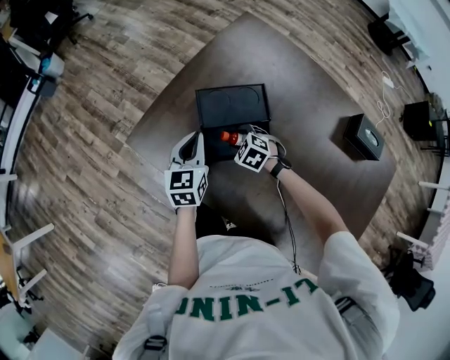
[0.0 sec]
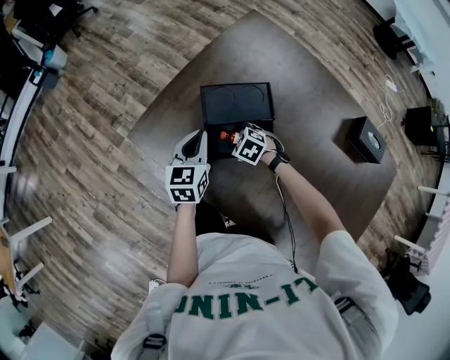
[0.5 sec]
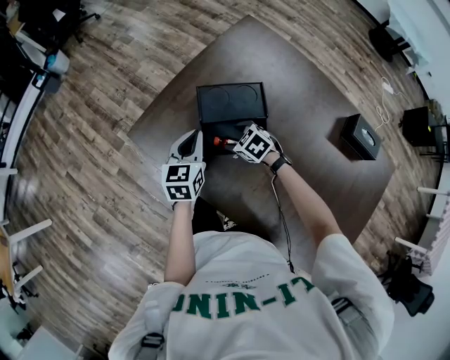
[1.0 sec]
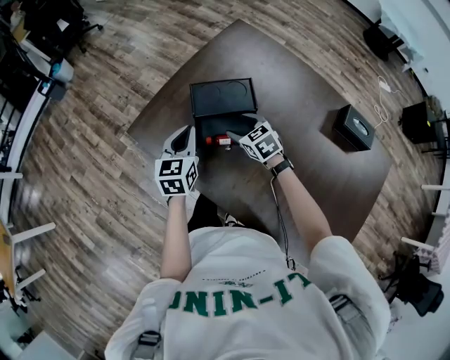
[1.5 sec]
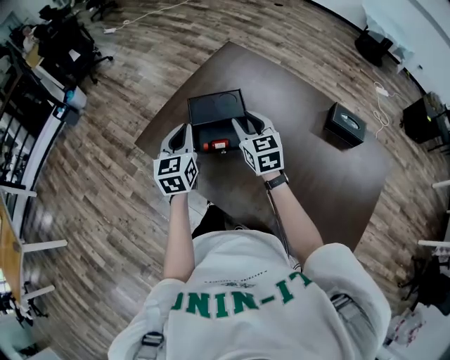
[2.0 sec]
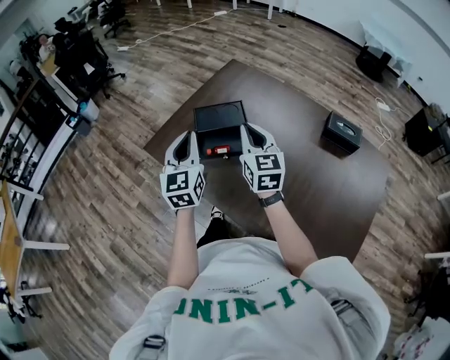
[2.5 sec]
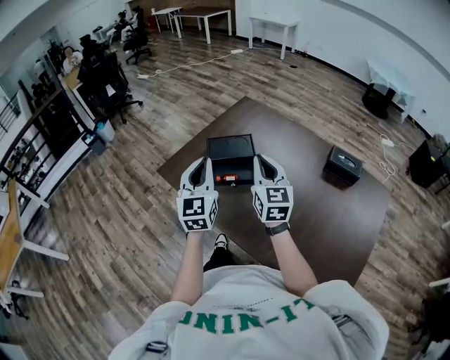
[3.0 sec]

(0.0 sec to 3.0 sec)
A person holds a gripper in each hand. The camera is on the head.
0.0 sec - 1.5 sec: The left gripper moves backward, roughly 5 cm. Meanwhile the right gripper goes about 10 cm upward, and changes its angle by about 30 degrees.
1.5 sec - 3.0 sec: The two grippers go roughly 30 cm upward and backward. The left gripper rotates some 30 degrees, while the right gripper angles its fingers upward, by about 40 degrees, and closes.

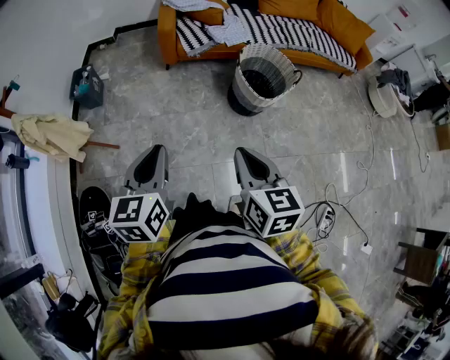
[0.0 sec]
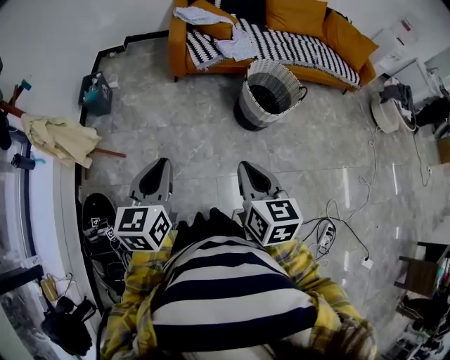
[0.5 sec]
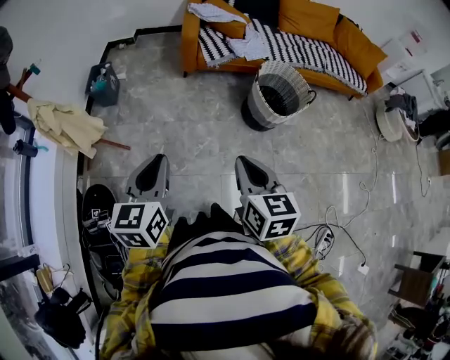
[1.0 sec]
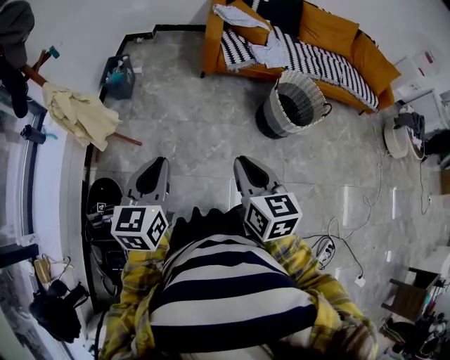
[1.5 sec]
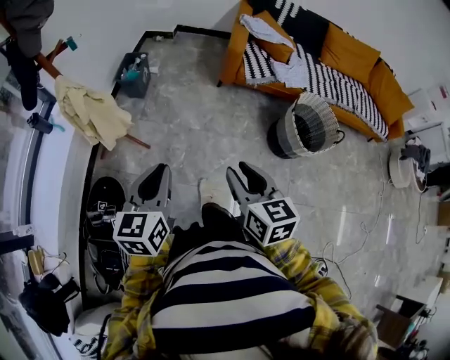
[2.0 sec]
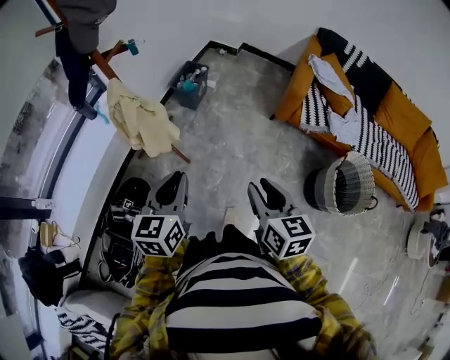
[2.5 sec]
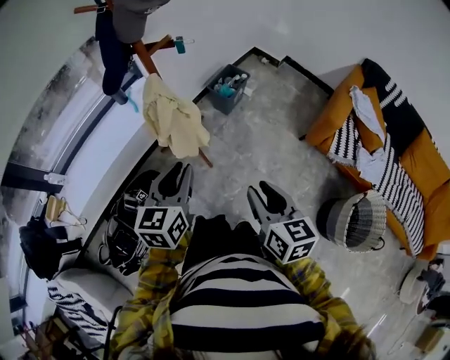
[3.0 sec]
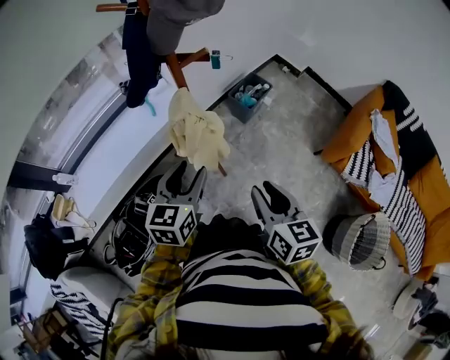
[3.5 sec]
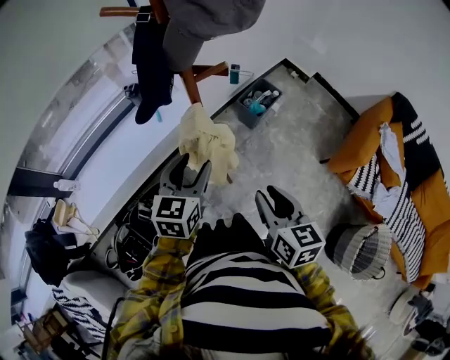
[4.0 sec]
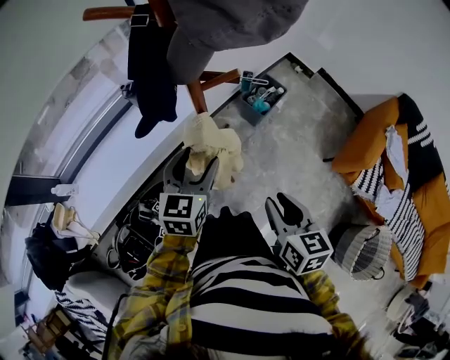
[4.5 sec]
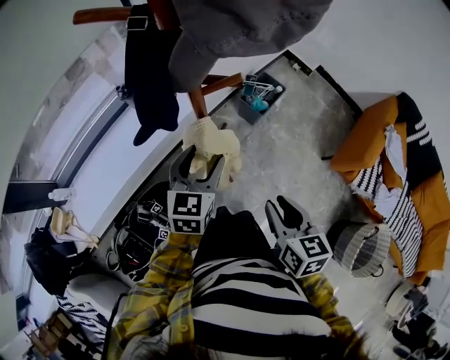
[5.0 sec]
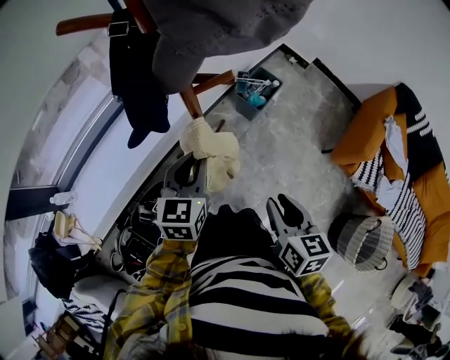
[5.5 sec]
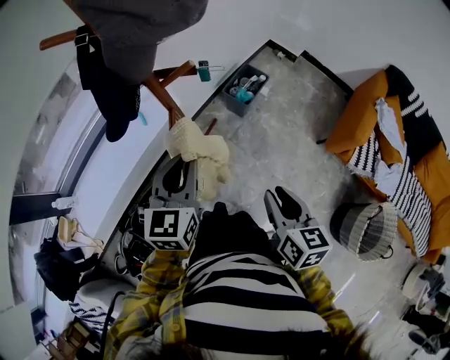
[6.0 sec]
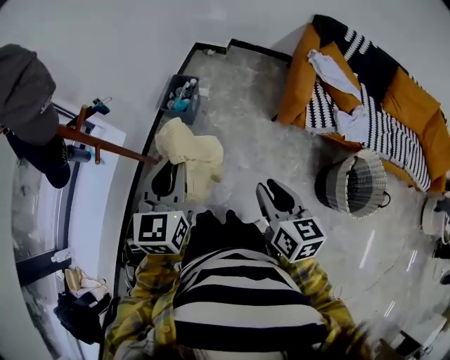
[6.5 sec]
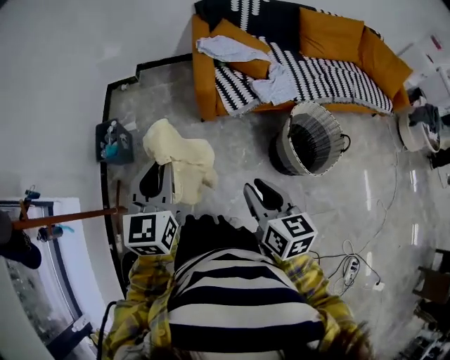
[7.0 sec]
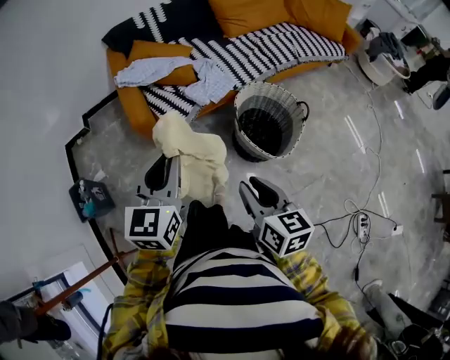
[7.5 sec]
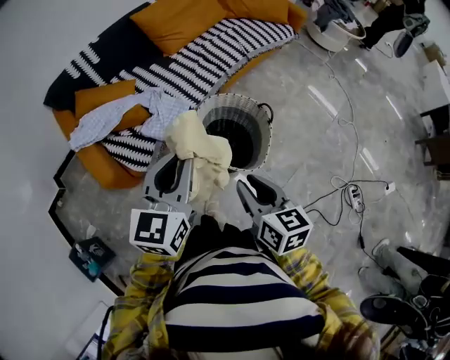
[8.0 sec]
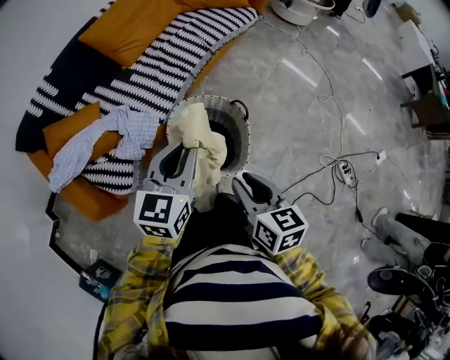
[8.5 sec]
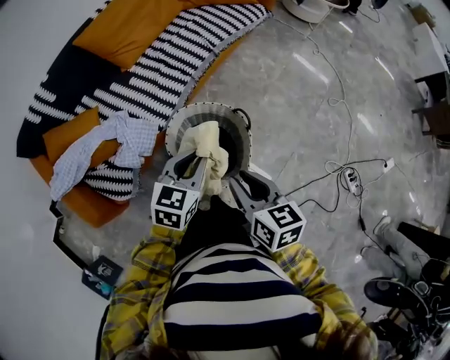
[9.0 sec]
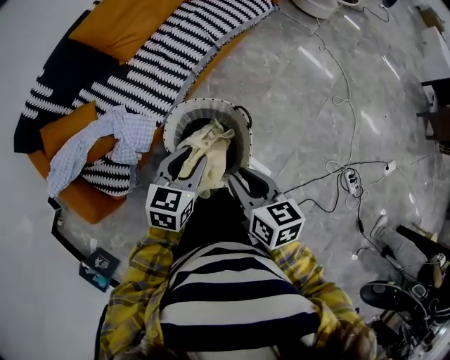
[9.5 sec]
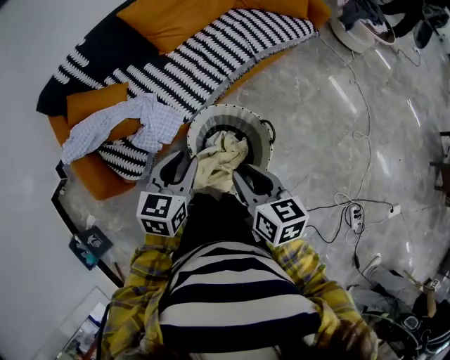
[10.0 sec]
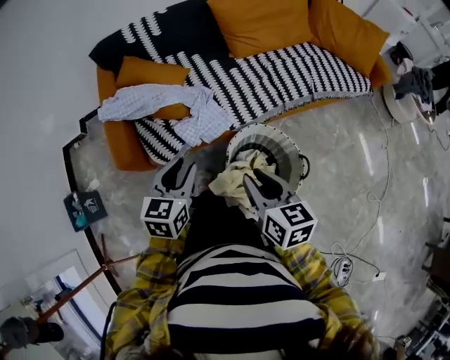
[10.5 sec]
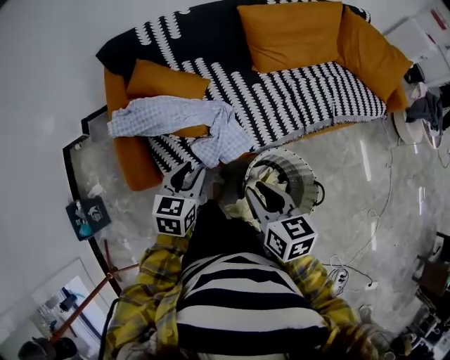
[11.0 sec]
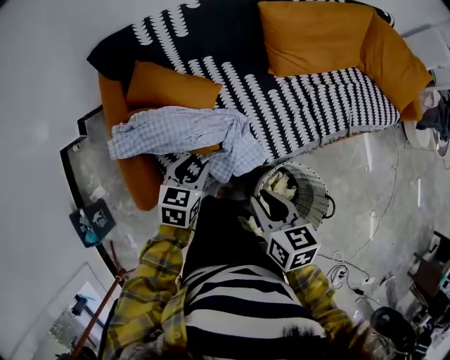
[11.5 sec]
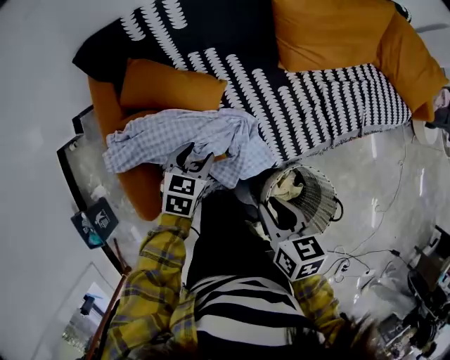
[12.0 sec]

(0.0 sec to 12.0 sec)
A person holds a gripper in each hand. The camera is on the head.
0.0 sec - 2.0 sec: The left gripper travels to the left by some 15 cm. Meanwhile the right gripper is displaced to the left and forward by some 20 cm, swivels approximately 20 degrees, and opens.
2.0 sec - 4.0 sec: The right gripper ends up approximately 40 cm from where it was, and swivels roughly 30 degrees; the left gripper moves some 40 cm, changes its angle by about 30 degrees, and opens.
4.0 sec - 6.0 sec: The left gripper ends up some 5 cm from where it was, and closes up. The right gripper heads to the right, covering about 5 cm.
6.0 sec - 8.0 sec: The pair of grippers is taken about 70 cm. The right gripper swivels roughly 80 degrees; the left gripper swivels some 90 degrees.
8.0 sec - 10.0 sec: The left gripper heads forward, downward and to the right, covering roughly 20 cm; the right gripper heads forward, covering some 15 cm.
10.0 sec - 12.0 sec: The right gripper travels forward and to the left by roughly 35 cm, and swivels approximately 30 degrees, while the left gripper heads forward, to the left and downward, covering some 40 cm, and changes its angle by roughly 20 degrees.

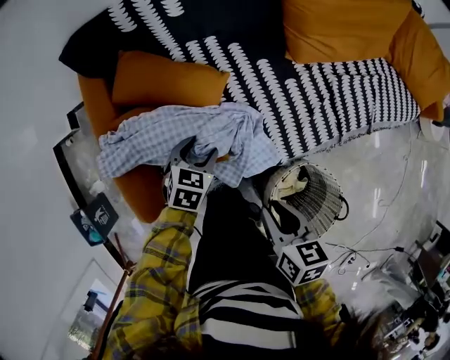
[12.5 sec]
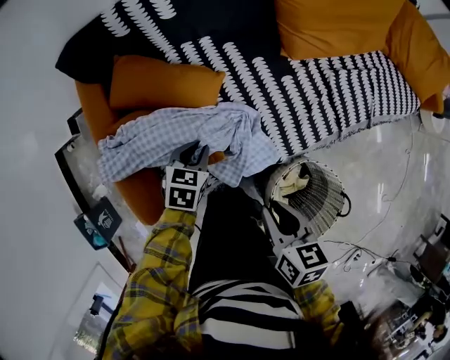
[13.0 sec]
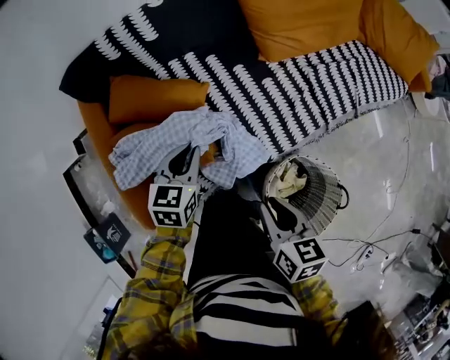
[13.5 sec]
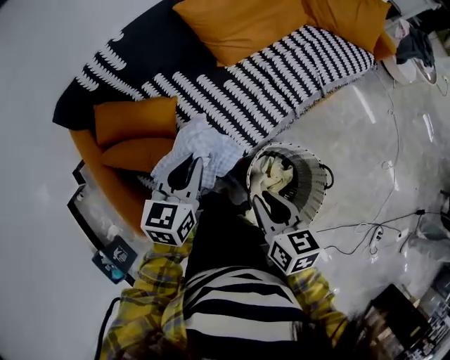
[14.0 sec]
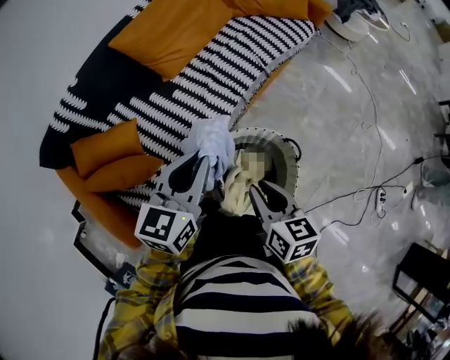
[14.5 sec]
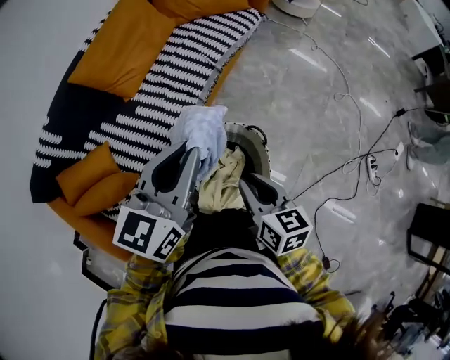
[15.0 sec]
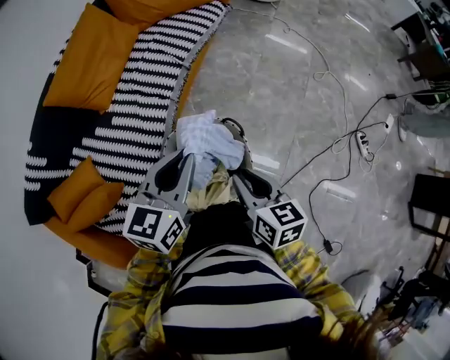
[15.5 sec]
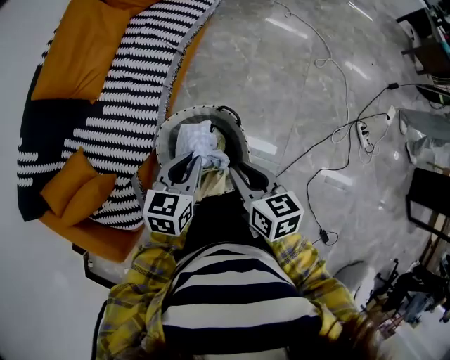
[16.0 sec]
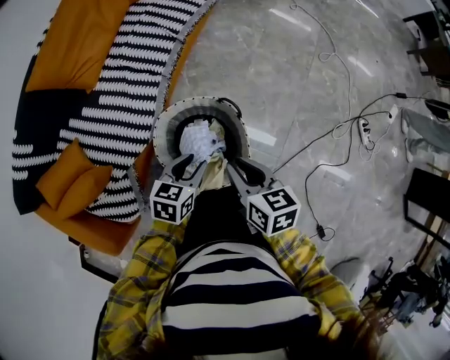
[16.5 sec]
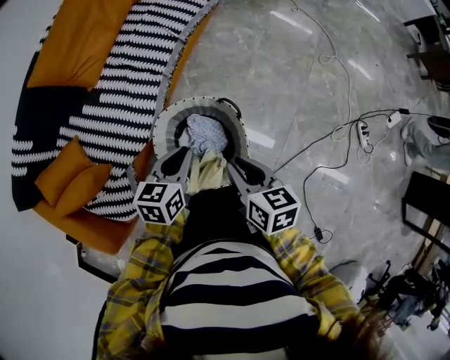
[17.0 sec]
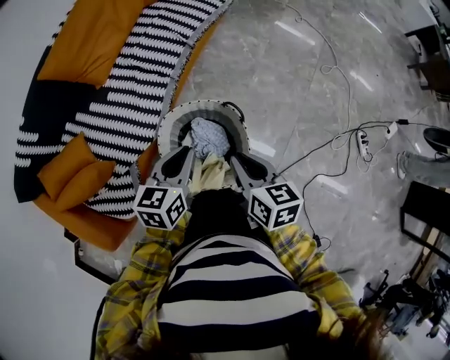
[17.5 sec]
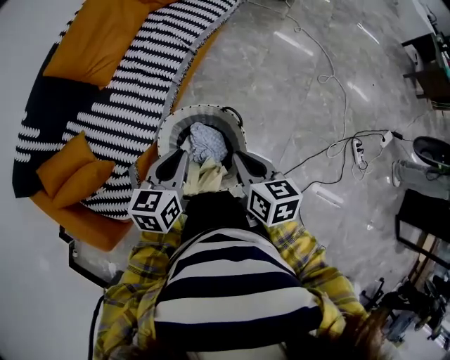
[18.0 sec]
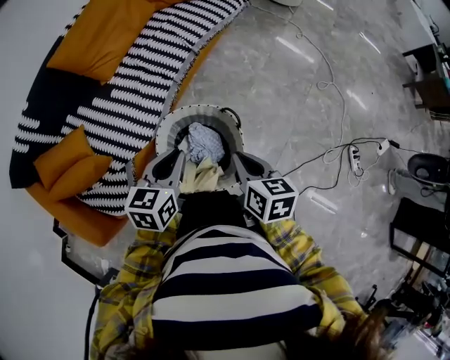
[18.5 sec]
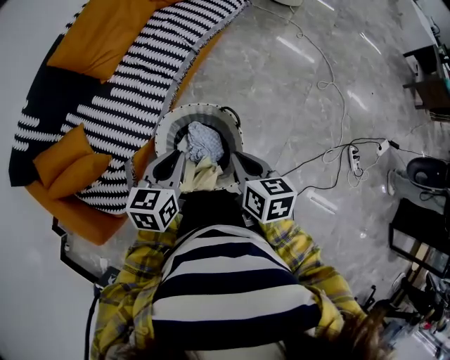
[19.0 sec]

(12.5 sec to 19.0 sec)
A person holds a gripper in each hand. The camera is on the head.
12.5 sec - 14.5 sec: The left gripper is displaced upward by approximately 30 cm, angles its fingers upward, by roughly 40 degrees, and closes up, while the right gripper moves roughly 25 cm, and turns by approximately 40 degrees.
14.5 sec - 17.0 sec: The left gripper moves up and down over approximately 30 cm, changing direction 2 times, and changes its angle by approximately 30 degrees; the right gripper is displaced to the right by some 15 cm.
17.0 sec - 19.0 sec: The left gripper moves upward, about 5 cm.

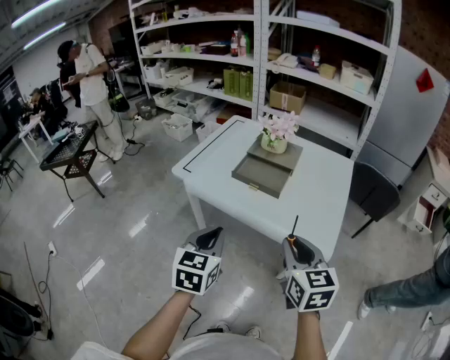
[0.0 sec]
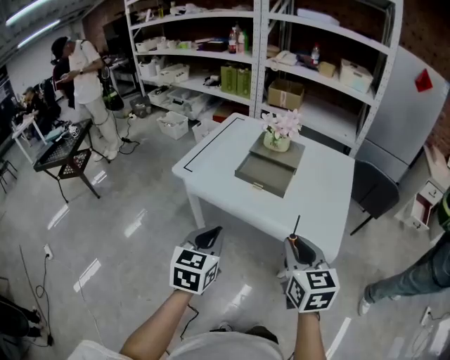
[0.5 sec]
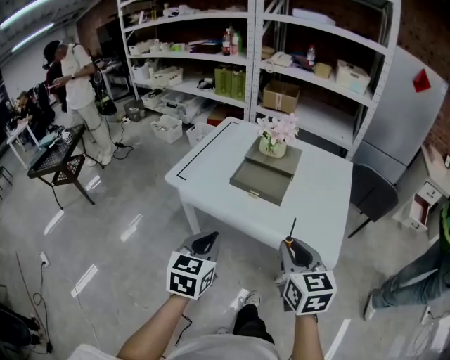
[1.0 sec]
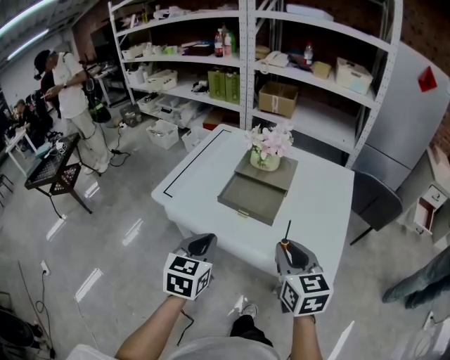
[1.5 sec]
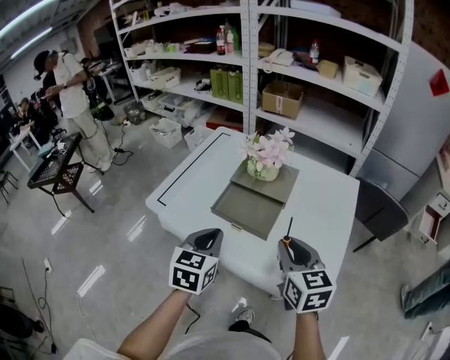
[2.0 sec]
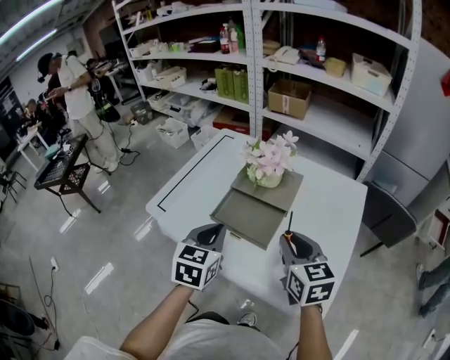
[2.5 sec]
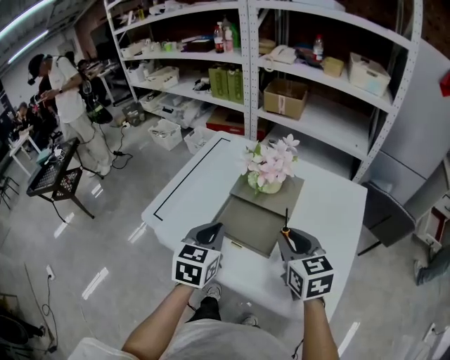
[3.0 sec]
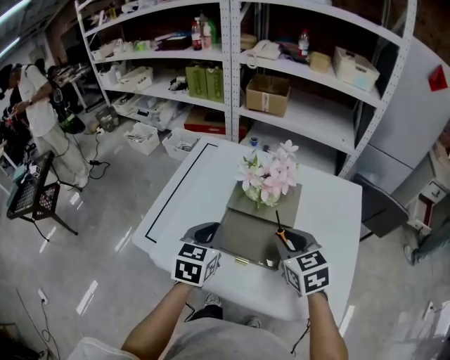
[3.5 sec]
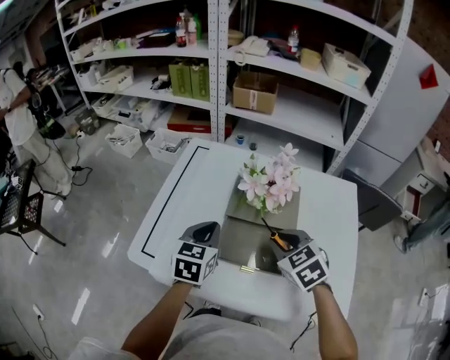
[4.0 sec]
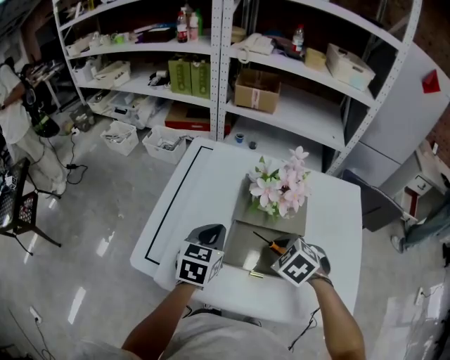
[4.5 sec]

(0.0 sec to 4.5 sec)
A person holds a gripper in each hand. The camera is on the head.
0.0 sec - 2.0 sec: Both grippers travel together forward, approximately 20 cm.
2.0 sec - 4.5 sec: The right gripper heads forward, downward and to the left, covering approximately 25 cm, and points its fingers approximately 40 degrees further downward, while the left gripper shifts approximately 25 cm forward.
